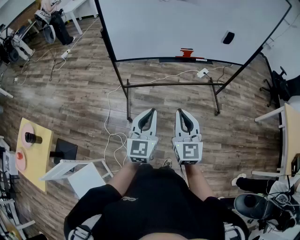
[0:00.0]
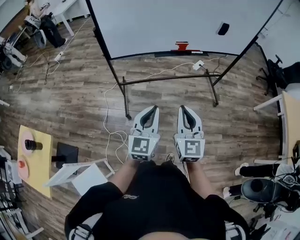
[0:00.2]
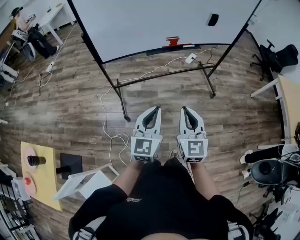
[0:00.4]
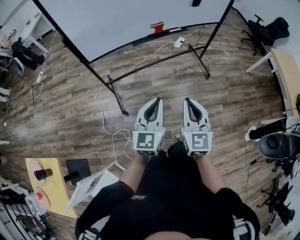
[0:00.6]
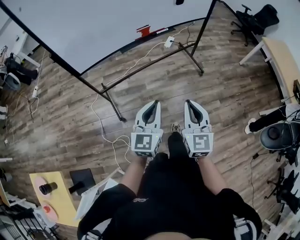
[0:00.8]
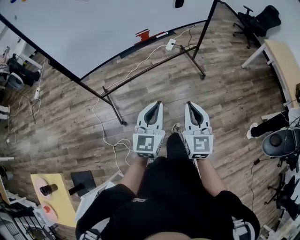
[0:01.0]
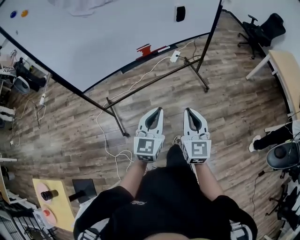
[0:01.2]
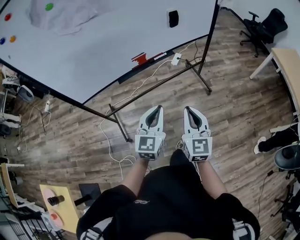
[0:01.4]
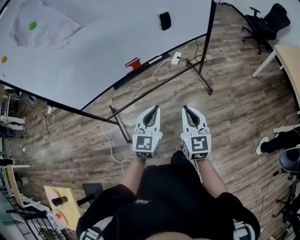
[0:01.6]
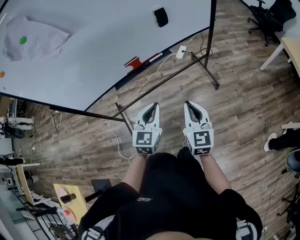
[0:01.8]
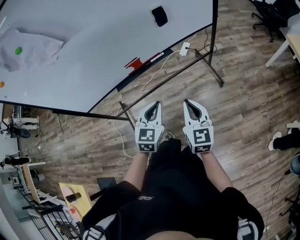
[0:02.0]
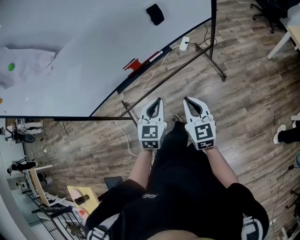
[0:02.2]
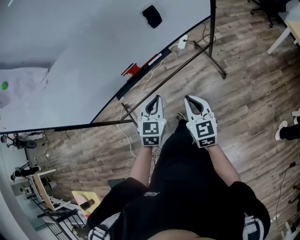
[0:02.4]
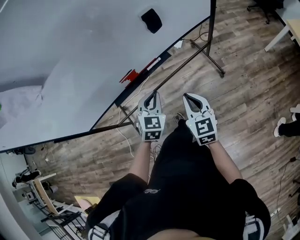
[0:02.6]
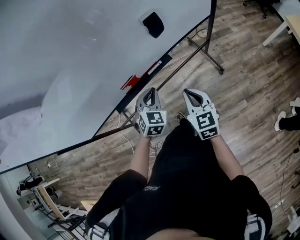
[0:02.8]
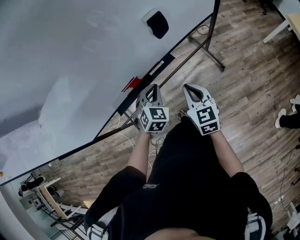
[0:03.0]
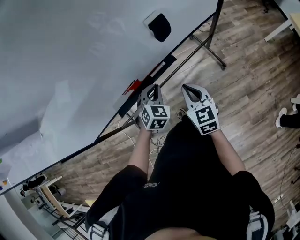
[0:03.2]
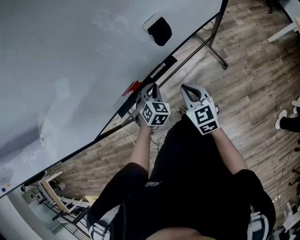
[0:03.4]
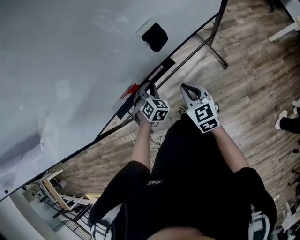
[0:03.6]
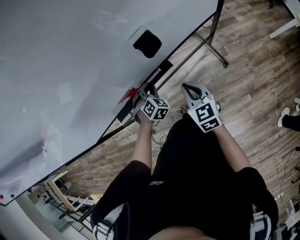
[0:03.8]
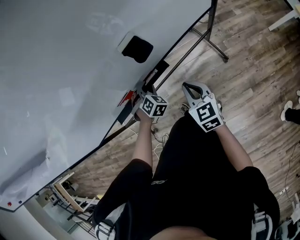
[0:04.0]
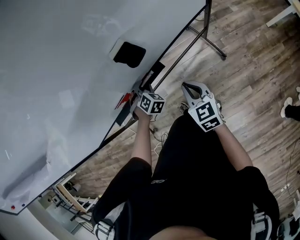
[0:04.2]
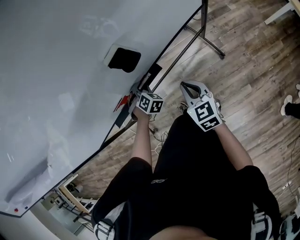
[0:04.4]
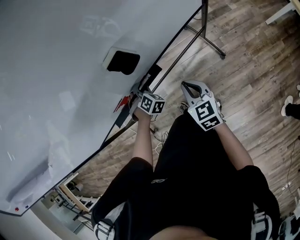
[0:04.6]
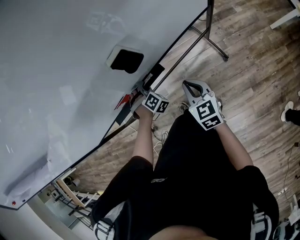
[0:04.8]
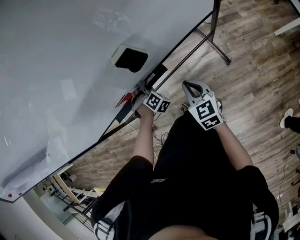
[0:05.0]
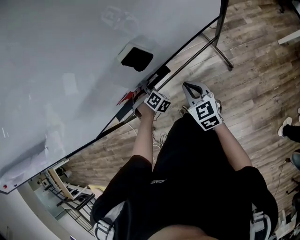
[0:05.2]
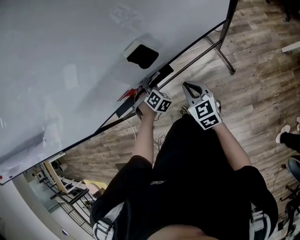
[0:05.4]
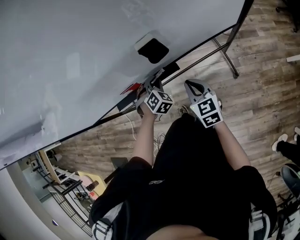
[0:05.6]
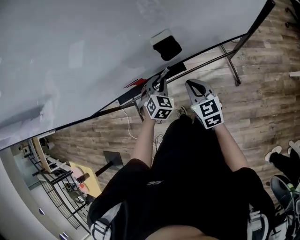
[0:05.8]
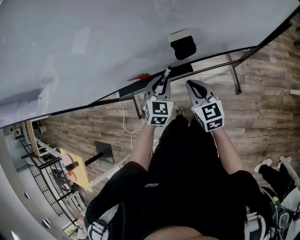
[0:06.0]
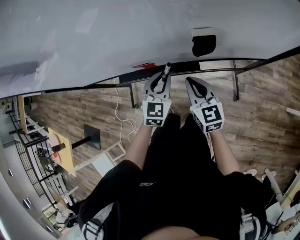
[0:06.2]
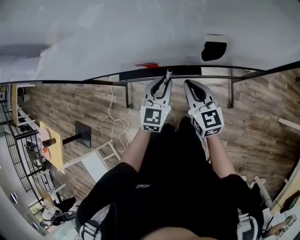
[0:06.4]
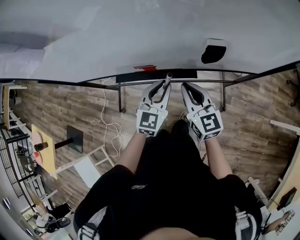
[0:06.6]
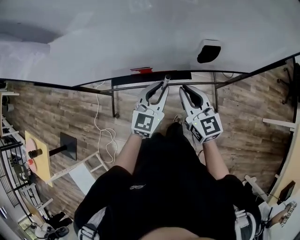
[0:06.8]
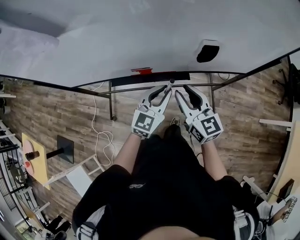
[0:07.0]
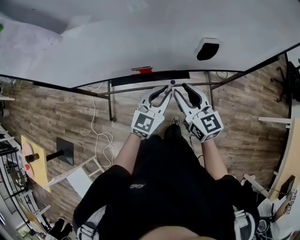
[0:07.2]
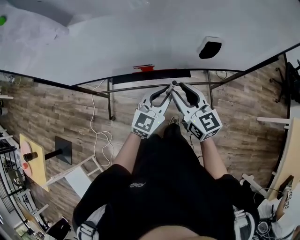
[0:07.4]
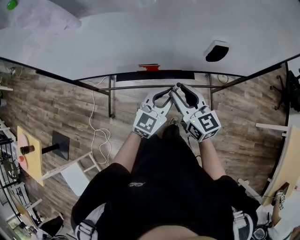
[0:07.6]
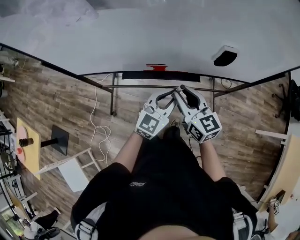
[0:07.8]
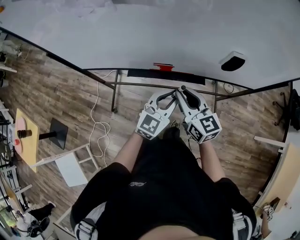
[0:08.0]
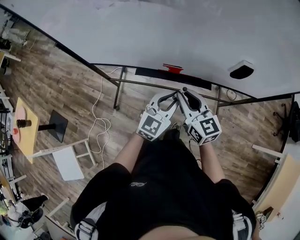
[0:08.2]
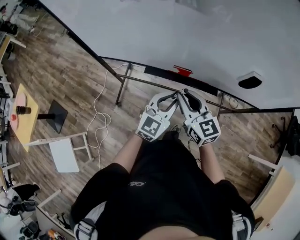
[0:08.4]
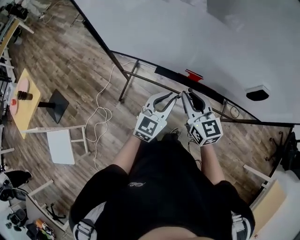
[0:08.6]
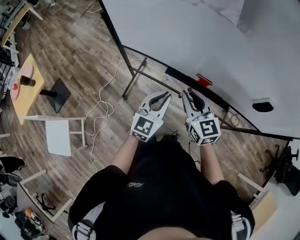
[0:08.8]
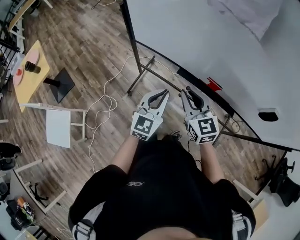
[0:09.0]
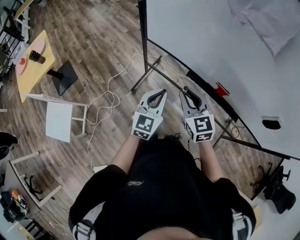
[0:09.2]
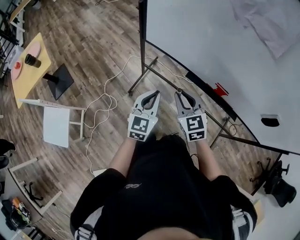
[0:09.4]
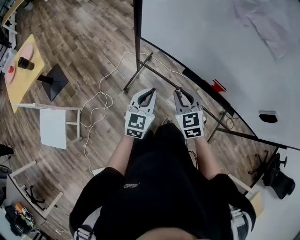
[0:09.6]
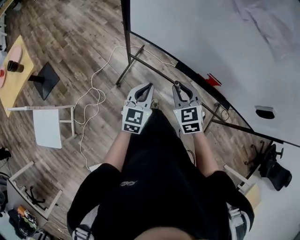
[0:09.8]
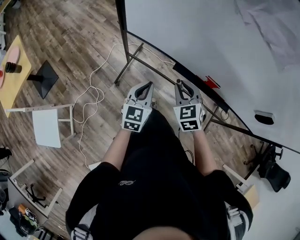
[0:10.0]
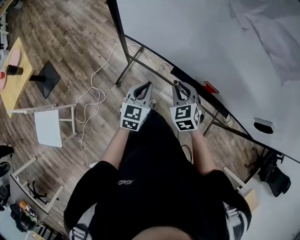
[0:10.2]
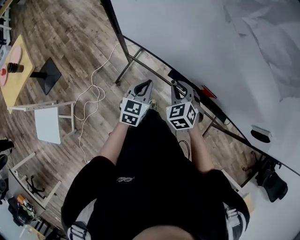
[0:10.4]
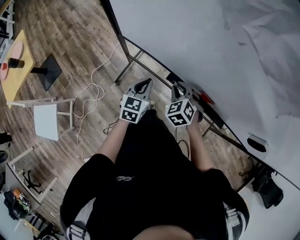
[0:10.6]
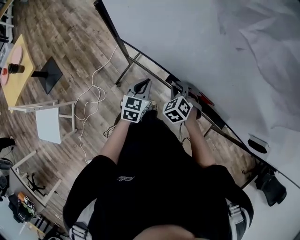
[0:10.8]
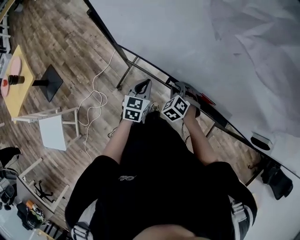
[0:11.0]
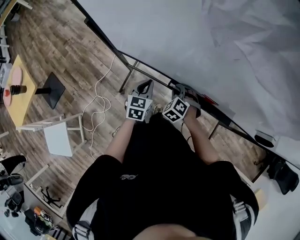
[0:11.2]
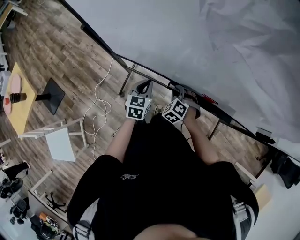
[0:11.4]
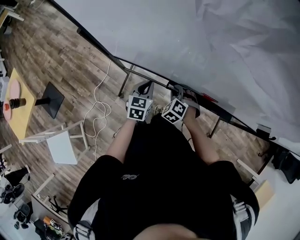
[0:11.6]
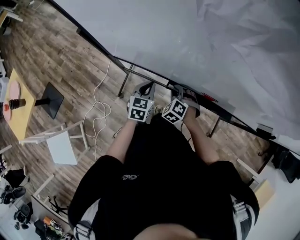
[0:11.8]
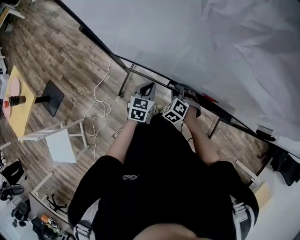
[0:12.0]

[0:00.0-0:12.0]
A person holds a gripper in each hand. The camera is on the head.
0:00.0 to 0:01.6: The right gripper is displaced to the right and forward by about 30 cm, and turns by some 20 degrees. Meanwhile the left gripper moves forward and to the right, roughly 30 cm, and rotates approximately 20 degrees.
0:01.6 to 0:03.0: The right gripper is displaced forward by about 30 cm. The left gripper travels forward and downward by roughly 35 cm, and swivels some 40 degrees.
0:03.0 to 0:04.4: The left gripper moves downward and forward, roughly 15 cm, and swivels some 30 degrees. The right gripper goes some 10 cm to the right and forward.
0:04.4 to 0:06.0: The left gripper is displaced upward by roughly 10 cm, and changes its angle by roughly 40 degrees. The right gripper shifts some 5 cm forward, and swivels some 20 degrees.
0:06.0 to 0:07.6: The left gripper is displaced upward and backward by about 15 cm, and rotates roughly 40 degrees. The right gripper travels to the left, upward and backward by about 20 cm, and opens.
0:07.6 to 0:09.0: The right gripper shifts by approximately 25 cm, and changes its angle by approximately 30 degrees. The left gripper moves roughly 30 cm, and turns by some 40 degrees.
0:09.0 to 0:10.4: The left gripper is displaced forward and downward by some 15 cm. The right gripper moves downward and forward, some 15 cm, and changes its angle by approximately 40 degrees.
0:10.4 to 0:12.0: The left gripper shifts about 10 cm forward and downward. The right gripper heads downward and forward, covering some 15 cm, and changes its angle by approximately 20 degrees.

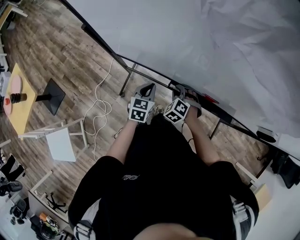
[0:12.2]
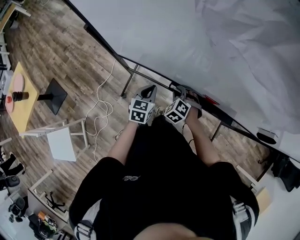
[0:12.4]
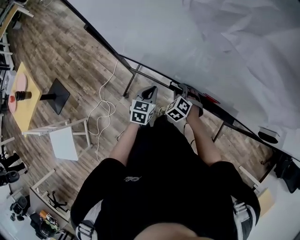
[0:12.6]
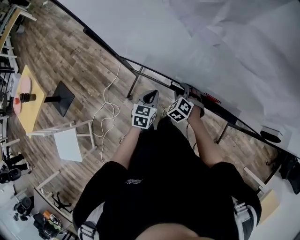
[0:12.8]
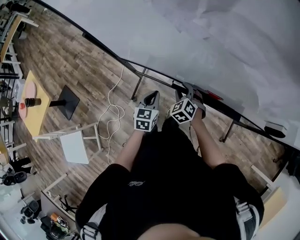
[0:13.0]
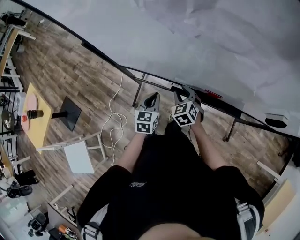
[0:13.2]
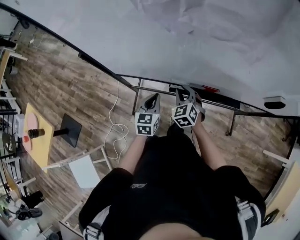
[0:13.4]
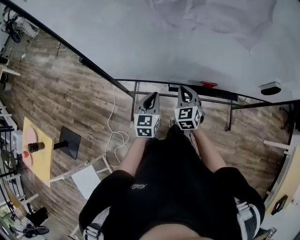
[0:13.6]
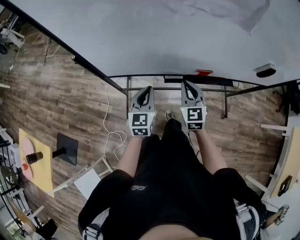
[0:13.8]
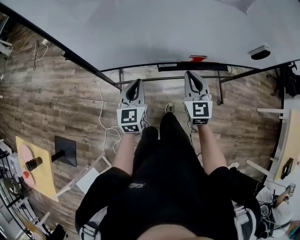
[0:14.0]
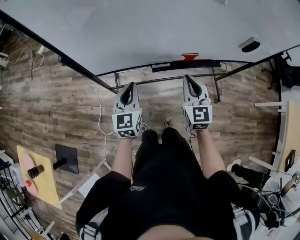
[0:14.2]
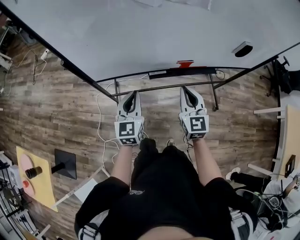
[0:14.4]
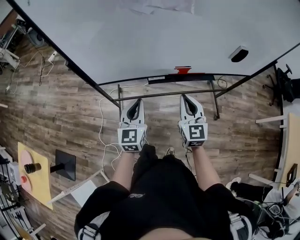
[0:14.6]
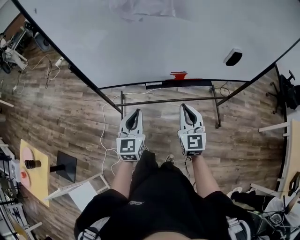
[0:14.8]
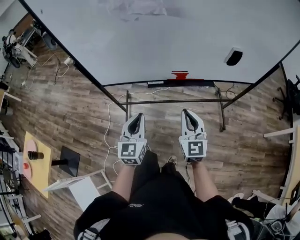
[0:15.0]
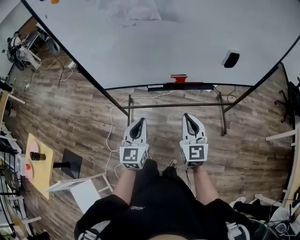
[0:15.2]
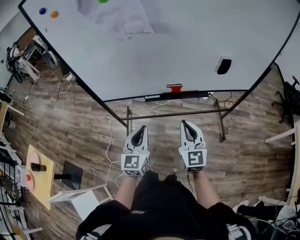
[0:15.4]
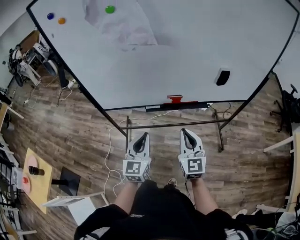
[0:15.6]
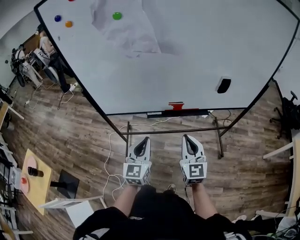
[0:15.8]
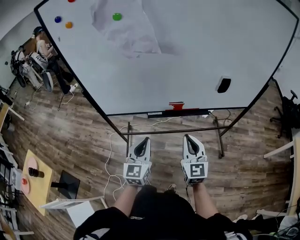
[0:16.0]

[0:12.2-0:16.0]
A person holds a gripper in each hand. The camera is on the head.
0:12.2 to 0:13.4: Both grippers move upward, roughly 10 cm. The right gripper changes its angle by about 40 degrees.
0:13.4 to 0:14.8: The left gripper moves backward and upward, approximately 20 cm, and turns by approximately 20 degrees. Meanwhile the right gripper is displaced backward, upward and to the right by roughly 30 cm, and turns by some 40 degrees.
0:14.8 to 0:16.0: The left gripper heads to the right, covering roughly 5 cm. The right gripper changes place by some 10 cm.

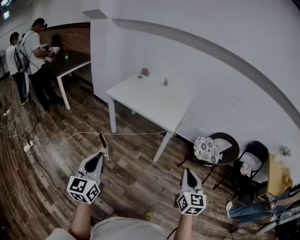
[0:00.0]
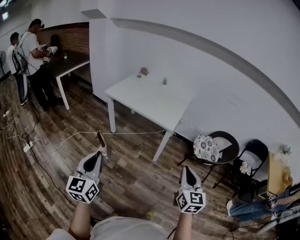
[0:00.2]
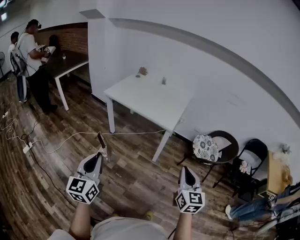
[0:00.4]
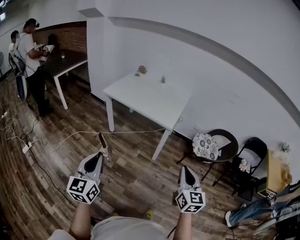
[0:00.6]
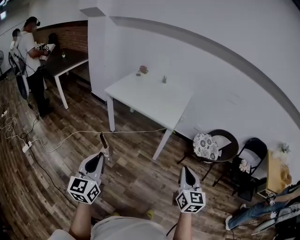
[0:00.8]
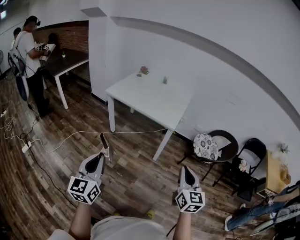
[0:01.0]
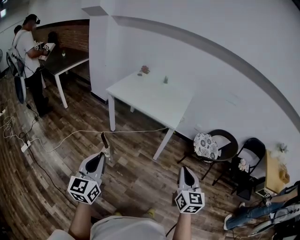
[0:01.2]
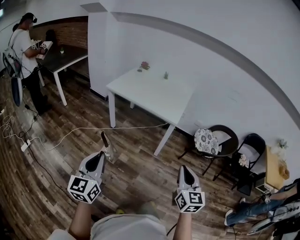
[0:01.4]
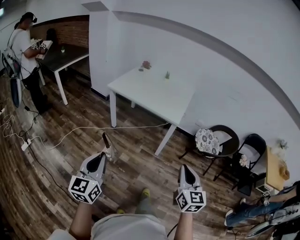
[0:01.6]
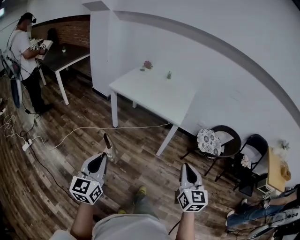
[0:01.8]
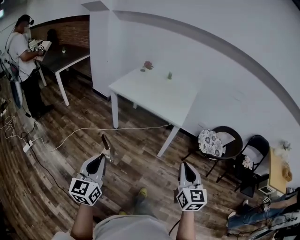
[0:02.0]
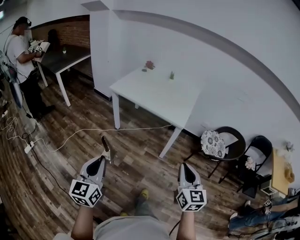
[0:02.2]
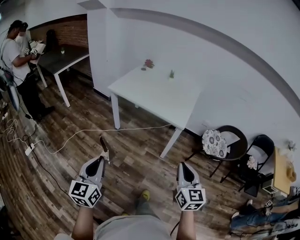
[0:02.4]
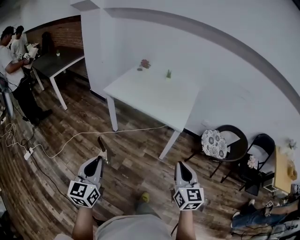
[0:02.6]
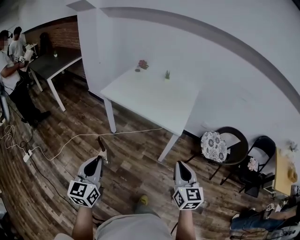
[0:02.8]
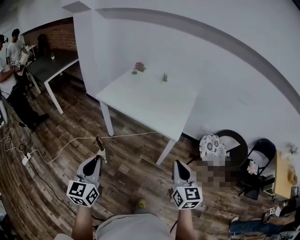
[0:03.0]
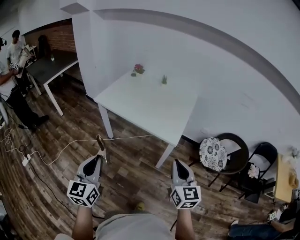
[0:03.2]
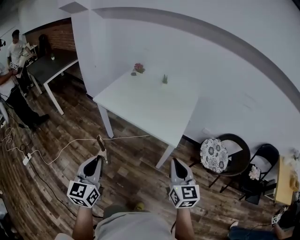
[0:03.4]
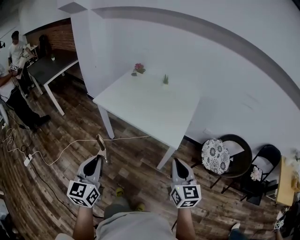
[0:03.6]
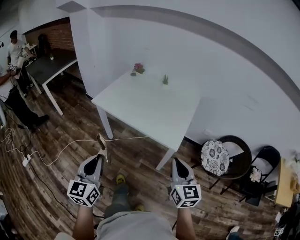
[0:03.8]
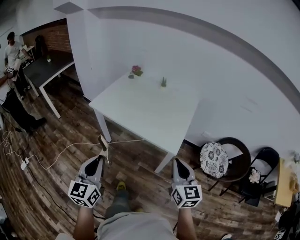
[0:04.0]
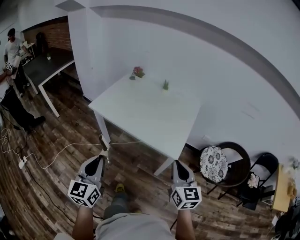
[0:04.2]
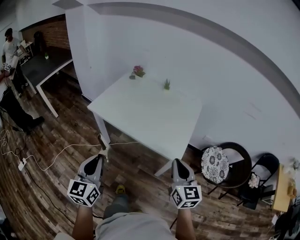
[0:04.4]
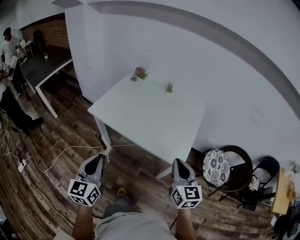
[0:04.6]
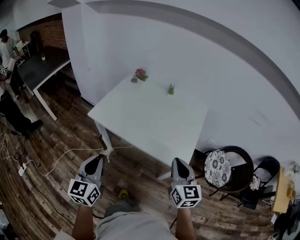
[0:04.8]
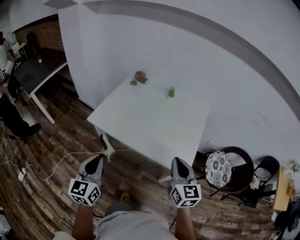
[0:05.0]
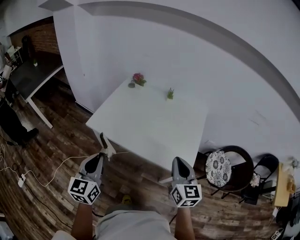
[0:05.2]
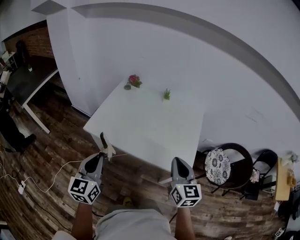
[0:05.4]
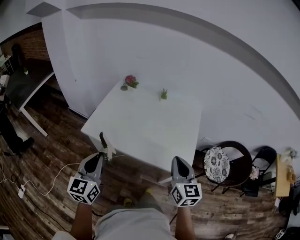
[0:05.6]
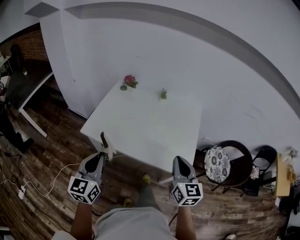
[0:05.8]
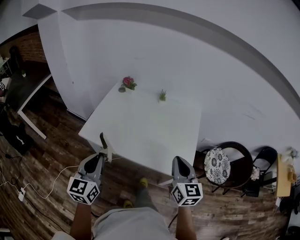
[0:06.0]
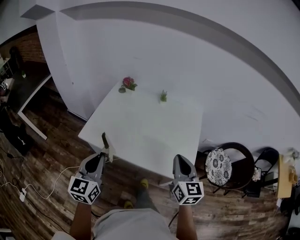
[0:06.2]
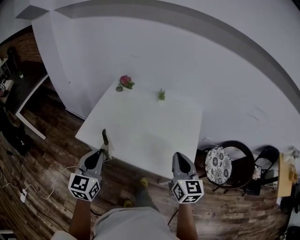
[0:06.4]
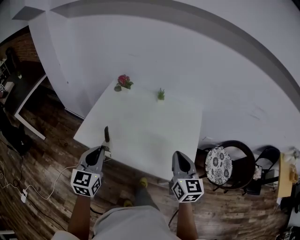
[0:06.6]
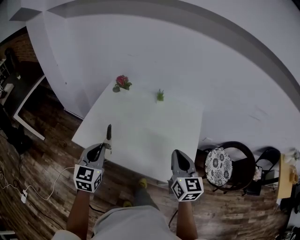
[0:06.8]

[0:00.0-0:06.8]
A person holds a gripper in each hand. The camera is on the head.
0:00.0 to 0:01.4: The grippers both shift to the left by some 5 cm.
0:01.4 to 0:02.8: The two grippers go about 20 cm forward.
0:02.8 to 0:04.0: The grippers both shift forward by roughly 20 cm.
0:04.0 to 0:05.4: Both grippers travel together forward and to the left, about 25 cm.
0:05.4 to 0:06.8: The two grippers go roughly 15 cm forward.
